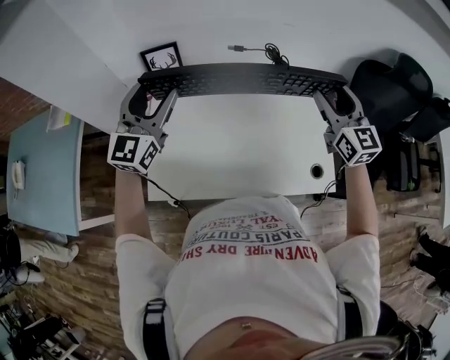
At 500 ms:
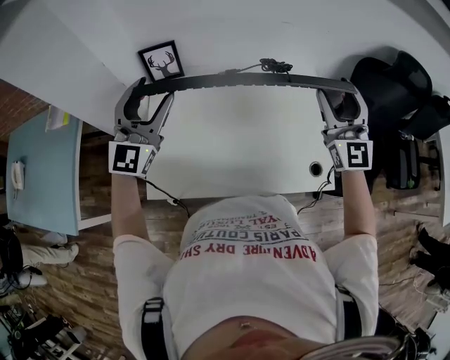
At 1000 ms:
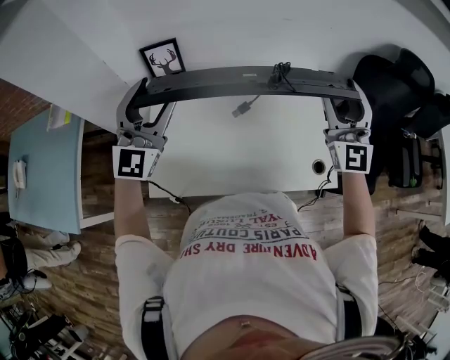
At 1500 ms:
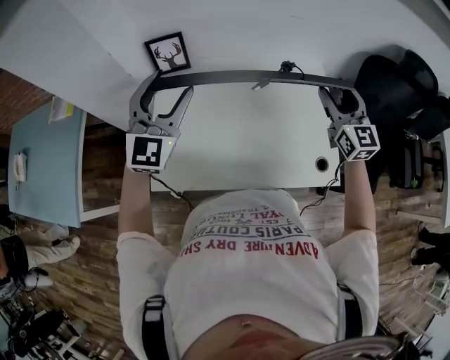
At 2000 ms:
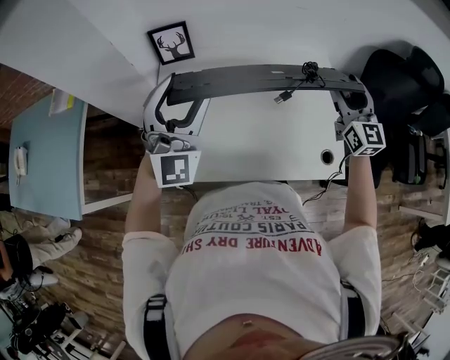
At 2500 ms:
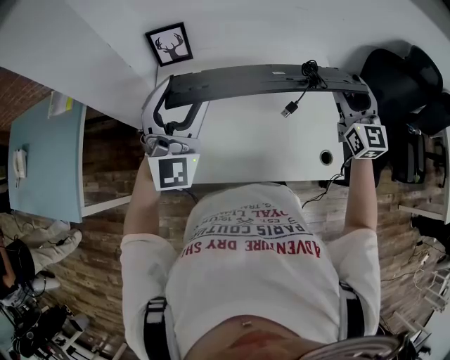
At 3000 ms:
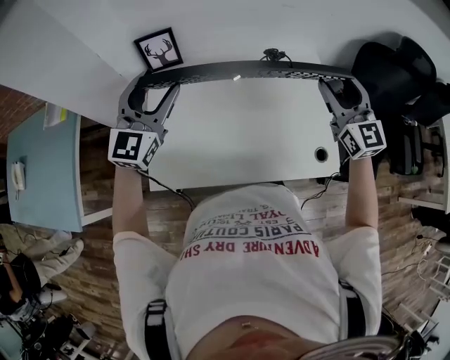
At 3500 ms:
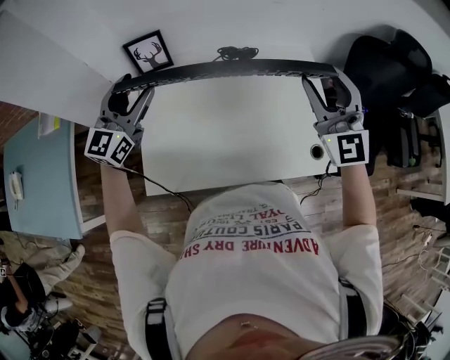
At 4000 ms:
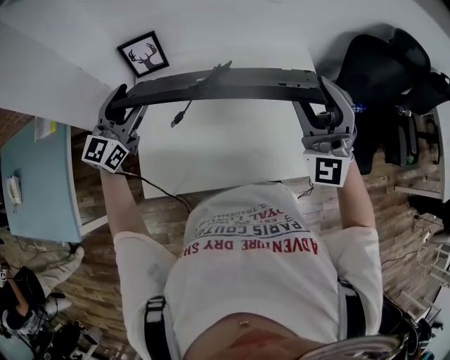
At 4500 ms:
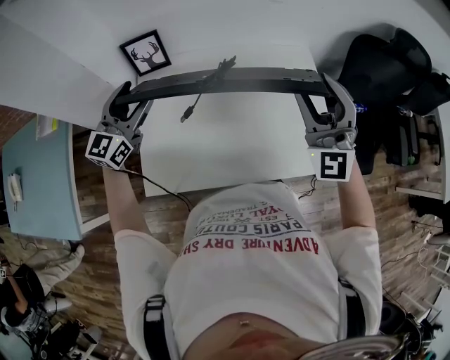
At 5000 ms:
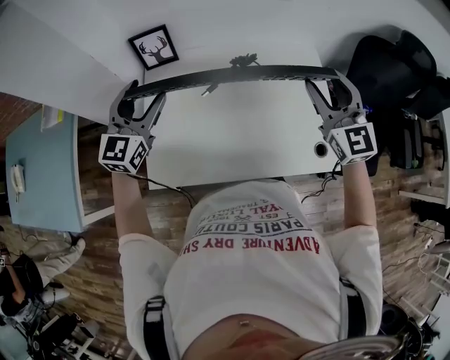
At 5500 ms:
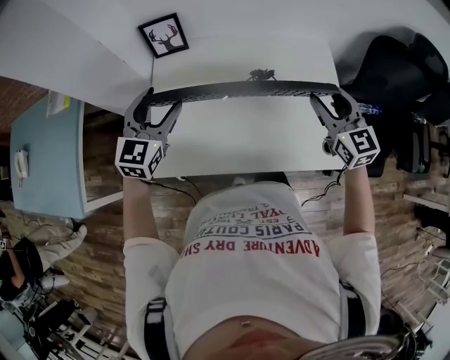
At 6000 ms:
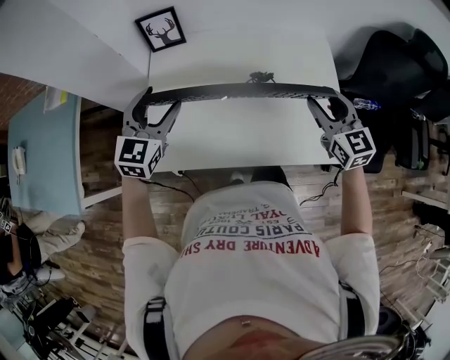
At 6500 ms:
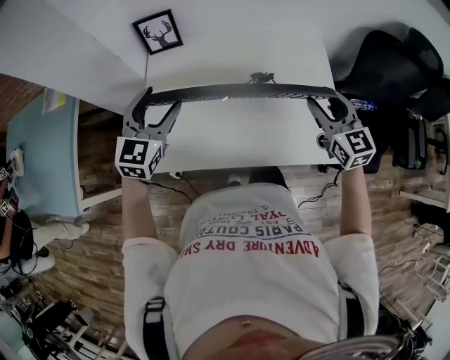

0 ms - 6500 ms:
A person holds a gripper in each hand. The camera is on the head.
0 ms - 2000 ms: The left gripper shifts approximately 10 cm backward and to the right, and swivels approximately 30 degrees.
2000 ms - 4500 ms: The right gripper goes roughly 15 cm to the left, upward and backward, and swivels about 40 degrees, while the left gripper moves to the left, forward and downward, some 15 cm, and turns by some 40 degrees.
4500 ms - 6500 ms: The right gripper shifts some 15 cm downward, and rotates approximately 50 degrees. Meanwhile the left gripper is displaced backward by roughly 10 cm.

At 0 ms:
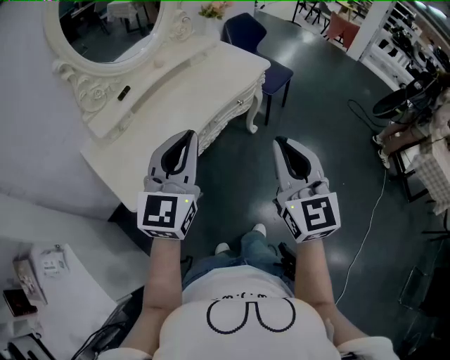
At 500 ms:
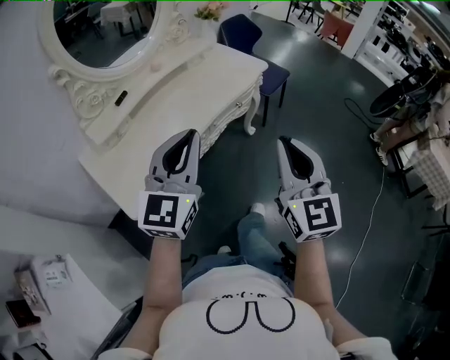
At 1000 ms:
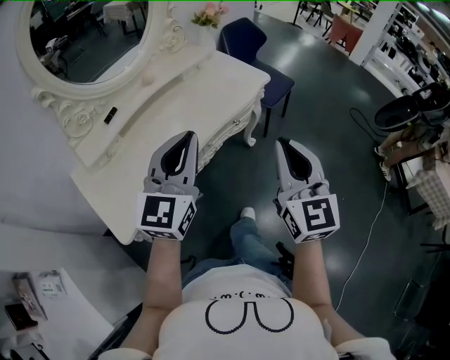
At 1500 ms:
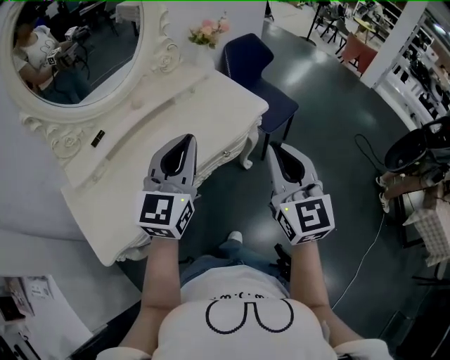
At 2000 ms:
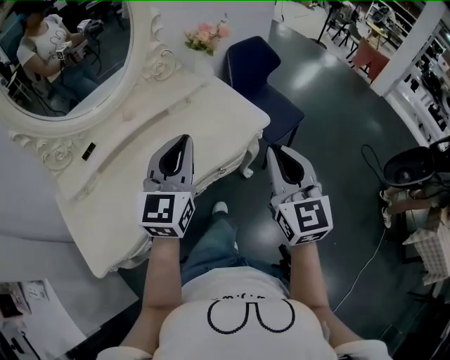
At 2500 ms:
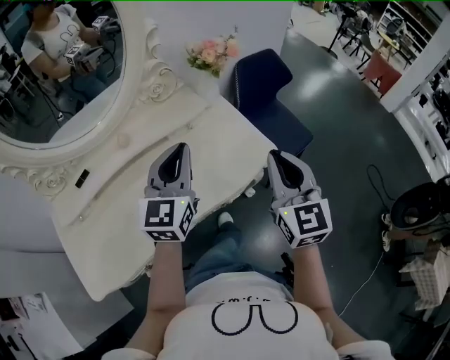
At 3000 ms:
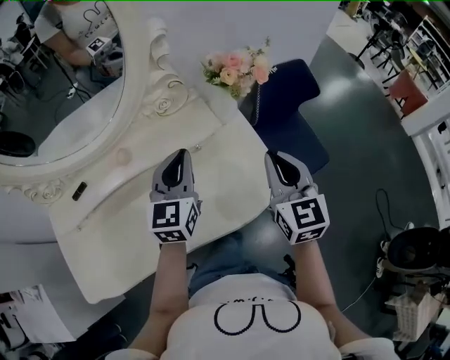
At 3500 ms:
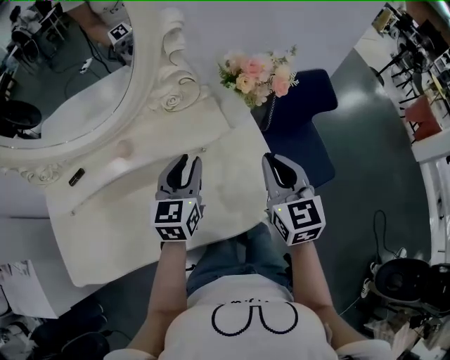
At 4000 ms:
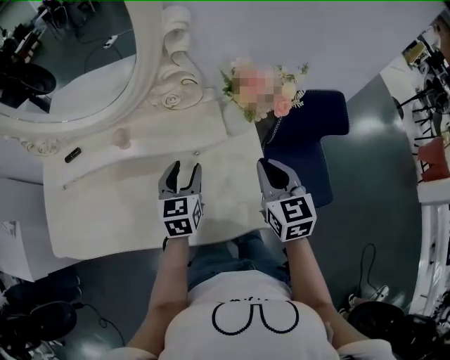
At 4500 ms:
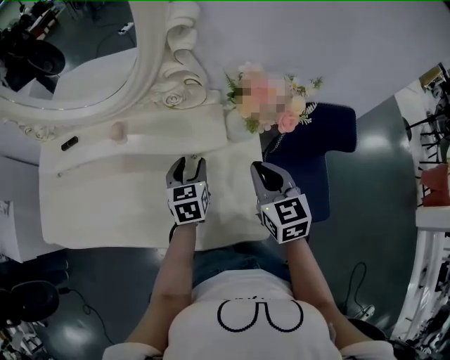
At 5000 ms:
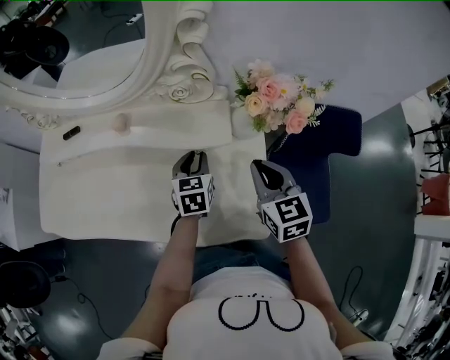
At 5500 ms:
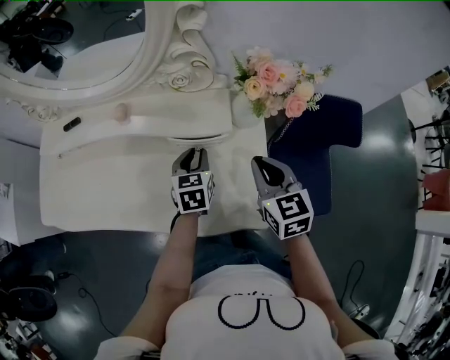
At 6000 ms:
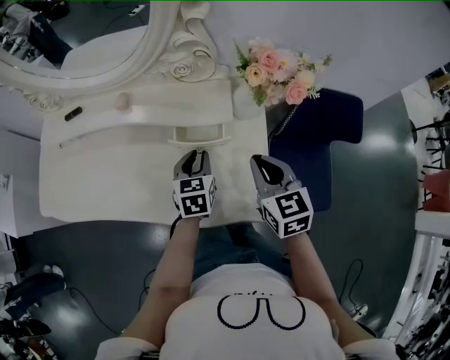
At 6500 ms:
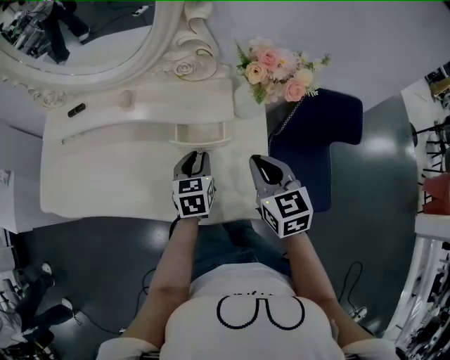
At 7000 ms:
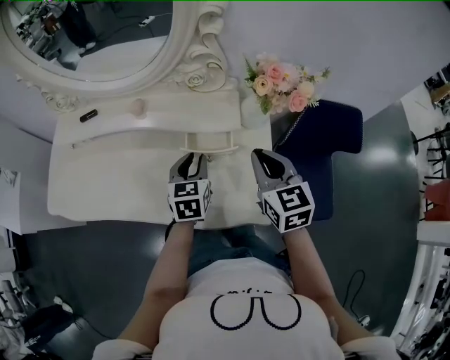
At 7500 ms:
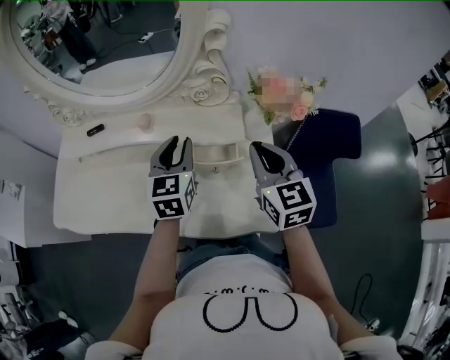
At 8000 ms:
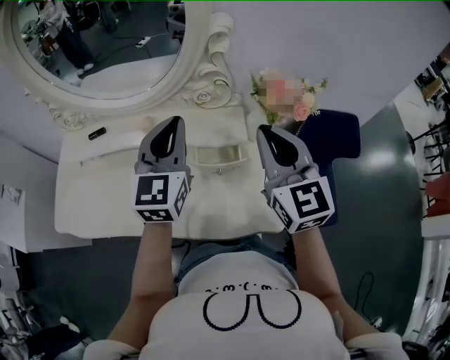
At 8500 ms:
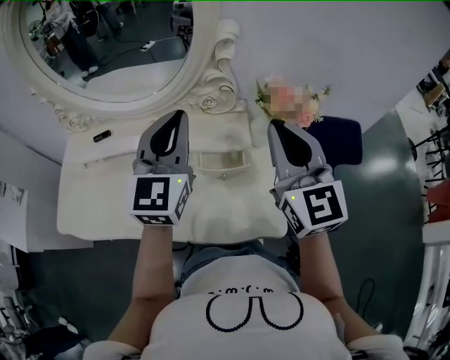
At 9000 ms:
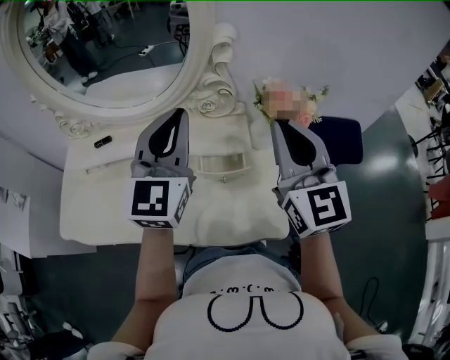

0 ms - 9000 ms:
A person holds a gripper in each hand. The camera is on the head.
0 ms - 2000 ms: Both grippers move forward, about 35 cm.
2000 ms - 4500 ms: The right gripper moves about 50 cm, and turns by approximately 50 degrees. Meanwhile the left gripper shifts by some 40 cm, angles its fingers downward, by about 30 degrees, and opens up.
4500 ms - 7000 ms: The left gripper is displaced backward by approximately 5 cm, and closes up, while the right gripper changes place by about 5 cm.
7000 ms - 9000 ms: The grippers both shift upward by some 25 cm. The right gripper turns by about 30 degrees; the left gripper tips its fingers upward by approximately 40 degrees, and closes its fingers.

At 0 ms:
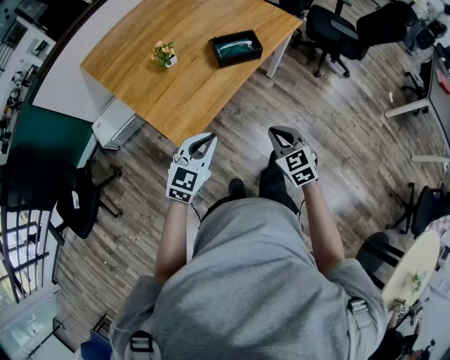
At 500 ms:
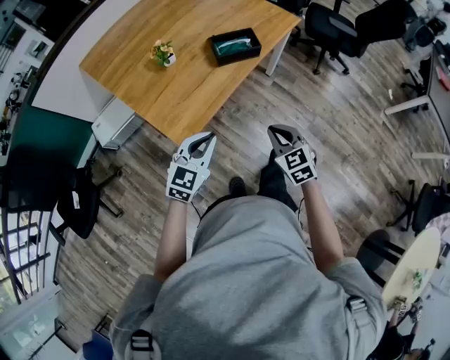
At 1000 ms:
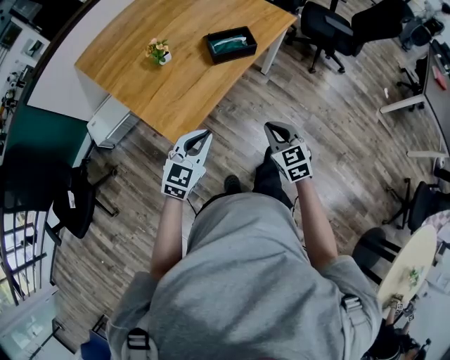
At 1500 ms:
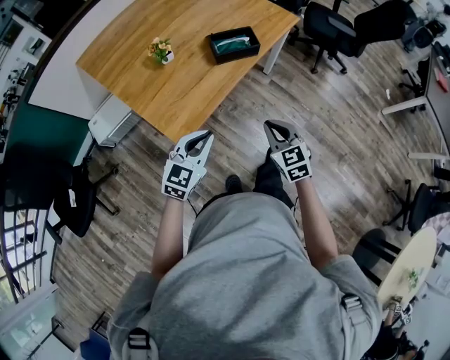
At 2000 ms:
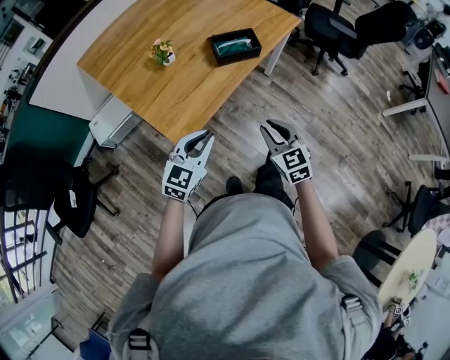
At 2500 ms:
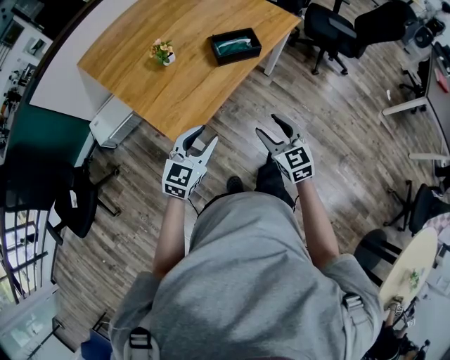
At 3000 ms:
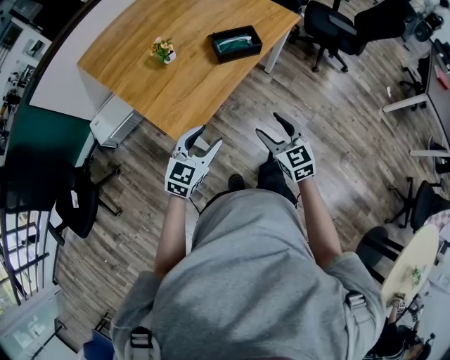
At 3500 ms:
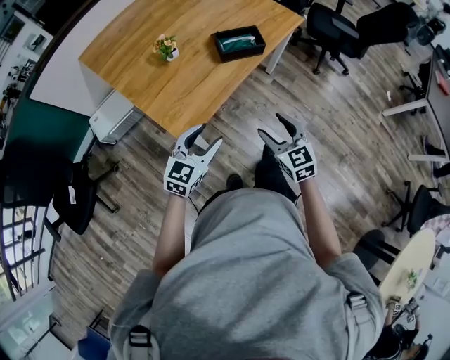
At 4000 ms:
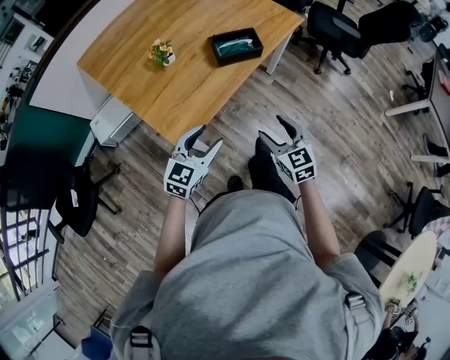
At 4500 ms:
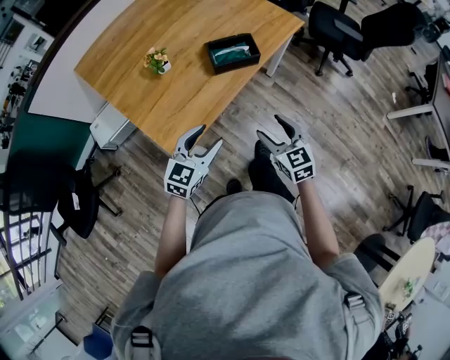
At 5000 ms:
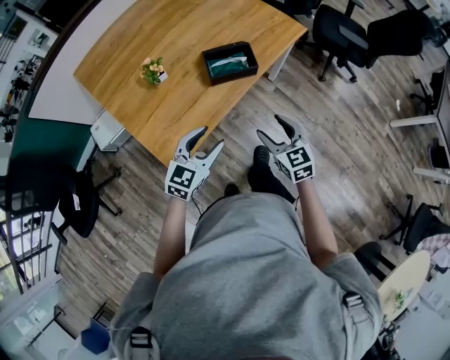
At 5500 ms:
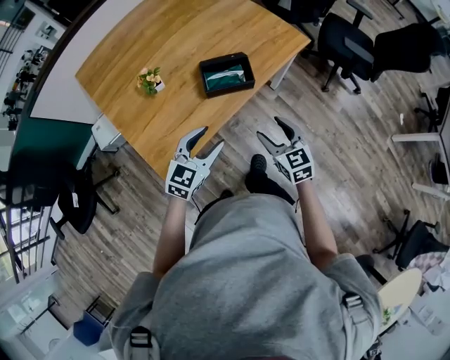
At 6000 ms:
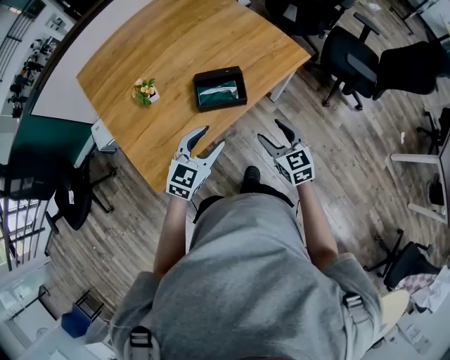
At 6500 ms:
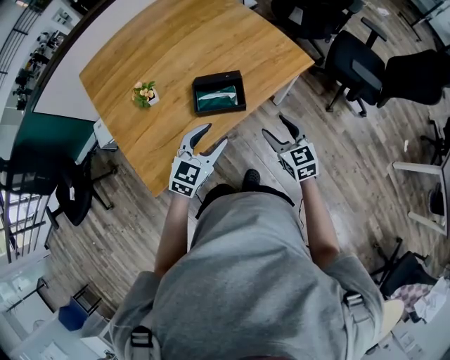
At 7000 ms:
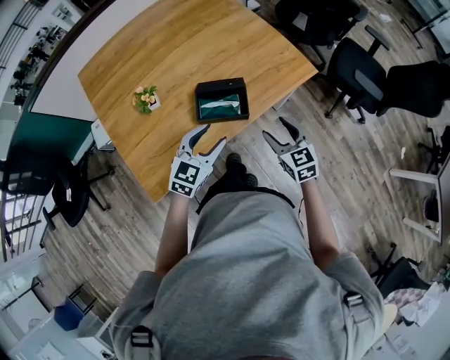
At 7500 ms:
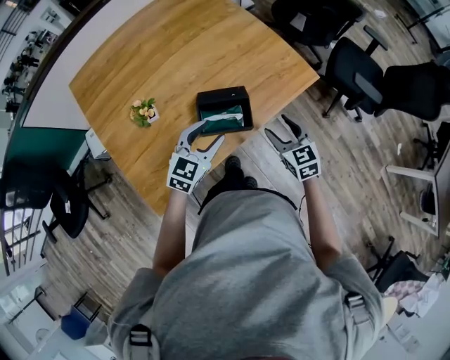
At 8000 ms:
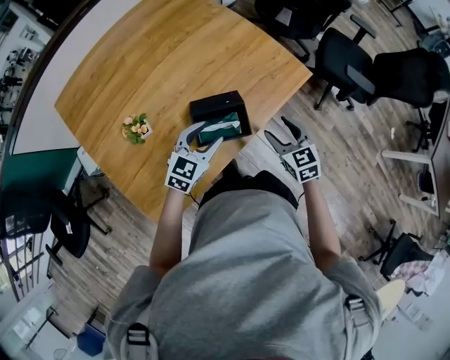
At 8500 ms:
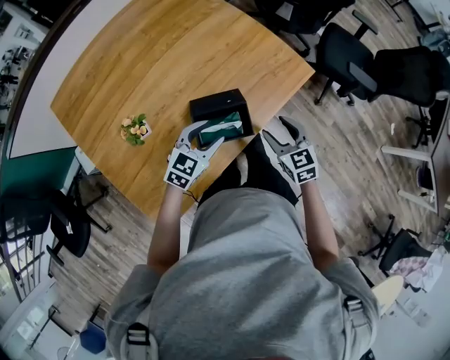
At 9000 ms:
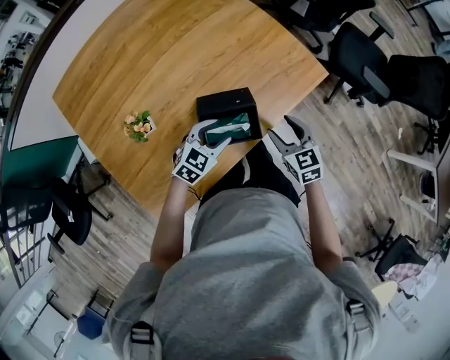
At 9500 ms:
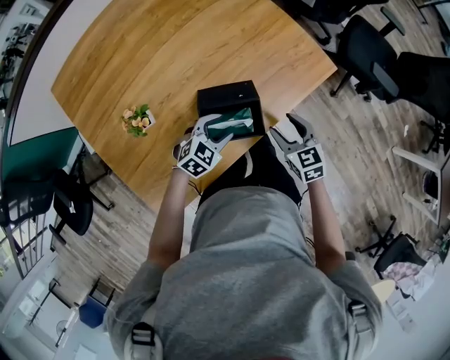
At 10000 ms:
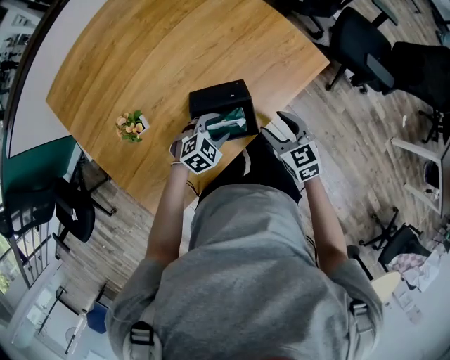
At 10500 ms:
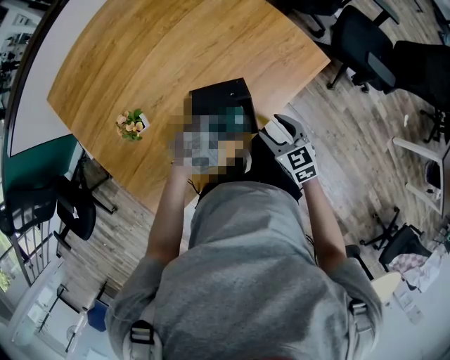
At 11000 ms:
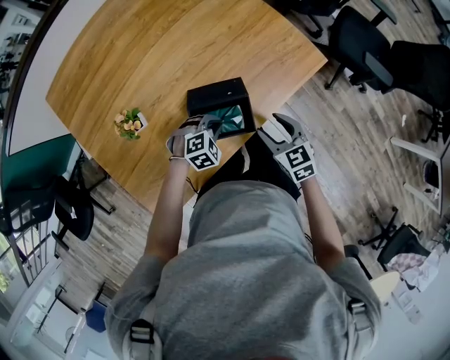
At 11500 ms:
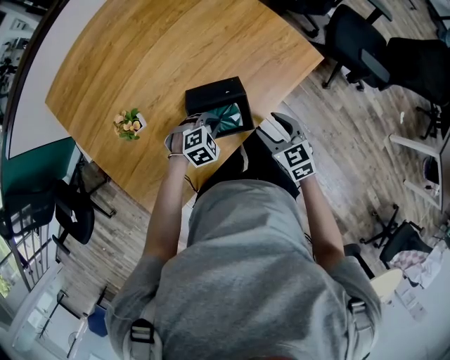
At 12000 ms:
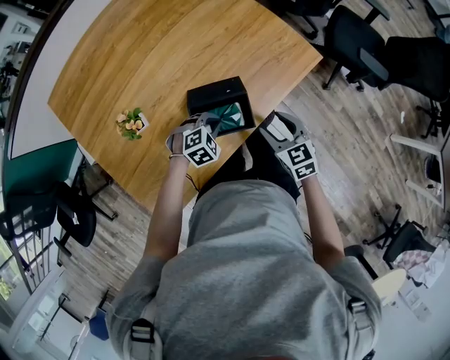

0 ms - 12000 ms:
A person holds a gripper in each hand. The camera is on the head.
0 ms - 2000 ms: The grippers move only a little.
2000 ms - 4000 ms: The left gripper opens, while the right gripper opens its fingers.
4000 ms - 6000 ms: Both grippers travel together forward and to the right, some 30 cm.
6000 ms - 8000 ms: The two grippers go about 15 cm forward.
8000 ms - 10000 ms: The right gripper moves downward, about 5 cm, while the left gripper moves downward, approximately 15 cm, and changes its angle by about 30 degrees.
10000 ms - 12000 ms: The left gripper closes its fingers.
